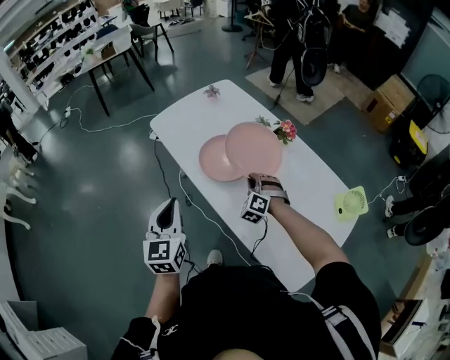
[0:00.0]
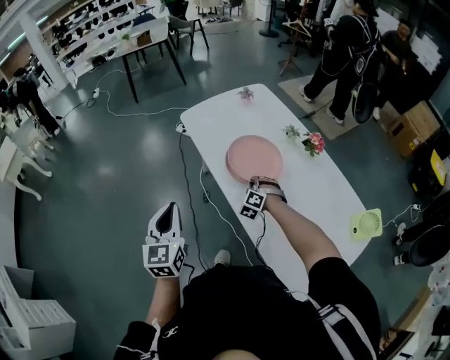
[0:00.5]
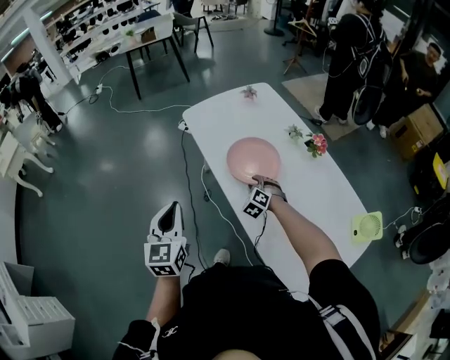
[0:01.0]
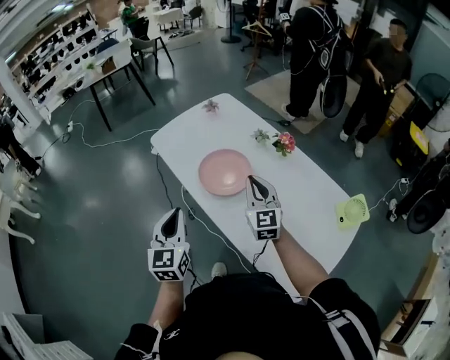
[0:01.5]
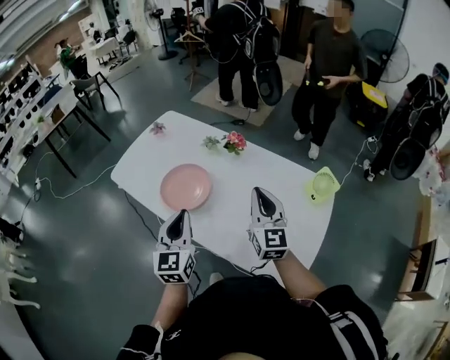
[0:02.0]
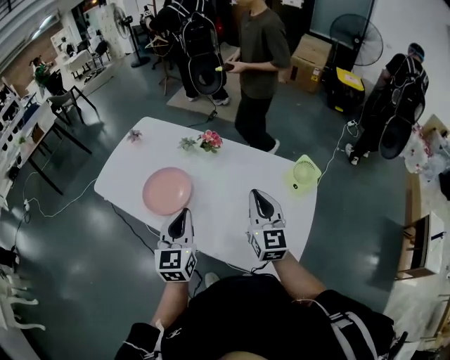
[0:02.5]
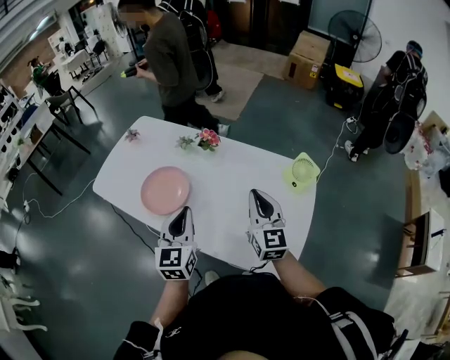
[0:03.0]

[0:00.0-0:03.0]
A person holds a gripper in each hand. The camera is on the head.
0:00.0 to 0:01.5: The left gripper moves roughly 5 cm to the left and comes back; the right gripper shifts some 15 cm upward, twists some 50 degrees clockwise, seen from behind, and opens and closes again.
0:01.5 to 0:03.0: The right gripper moves about 25 cm, and swivels roughly 30 degrees. The left gripper ends up about 25 cm from where it was, and rotates approximately 30 degrees.

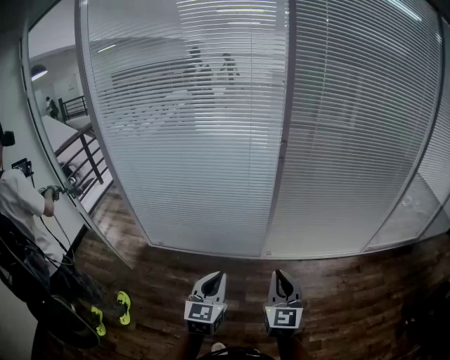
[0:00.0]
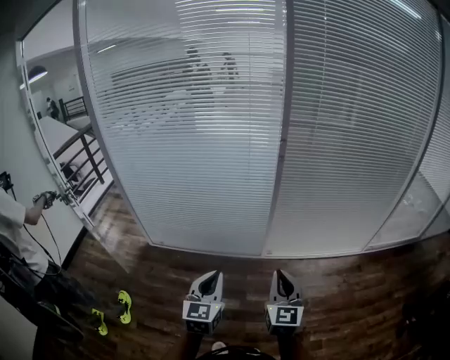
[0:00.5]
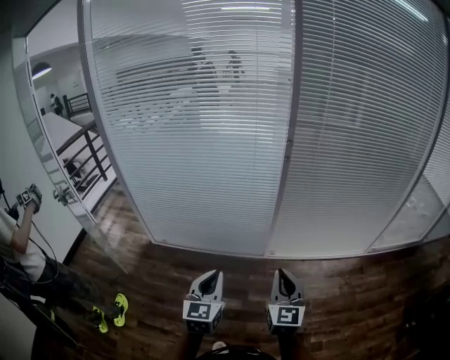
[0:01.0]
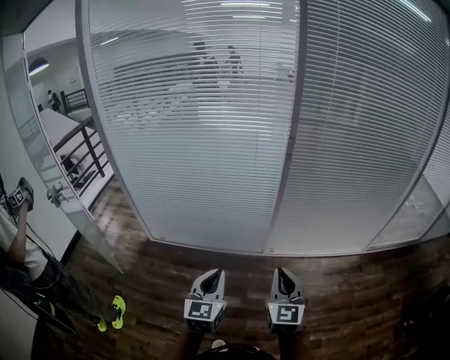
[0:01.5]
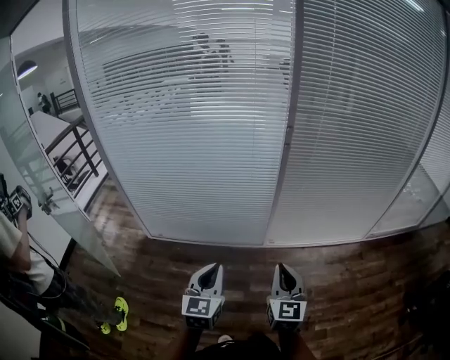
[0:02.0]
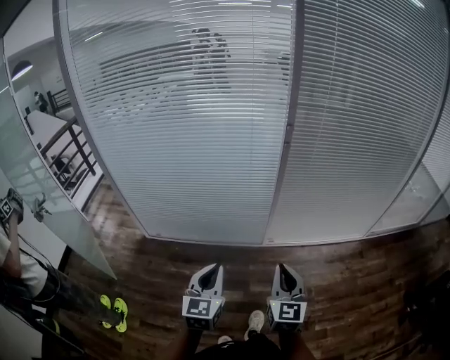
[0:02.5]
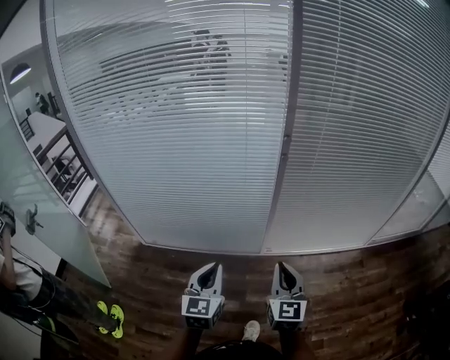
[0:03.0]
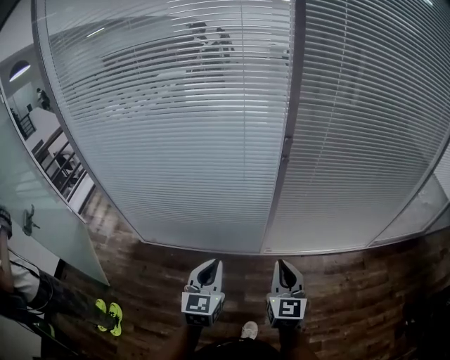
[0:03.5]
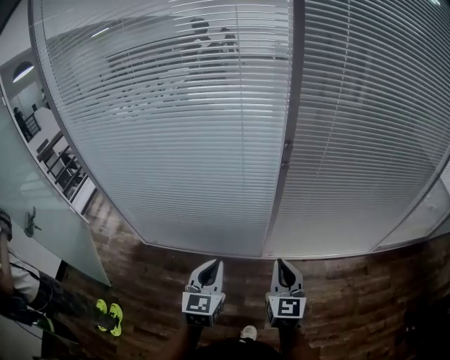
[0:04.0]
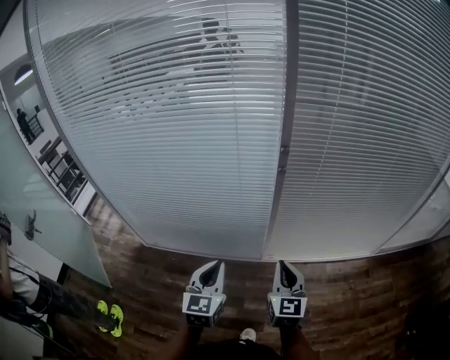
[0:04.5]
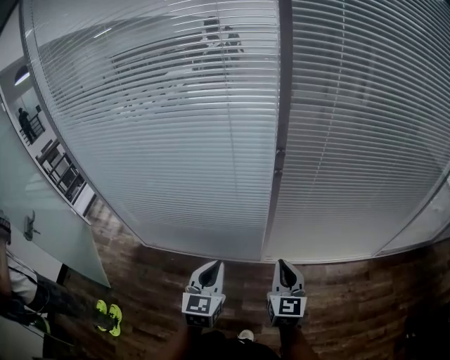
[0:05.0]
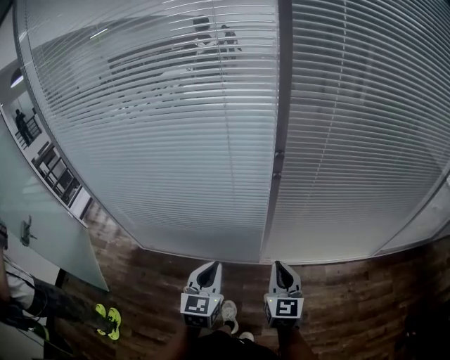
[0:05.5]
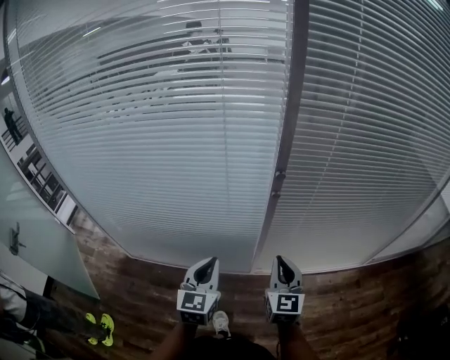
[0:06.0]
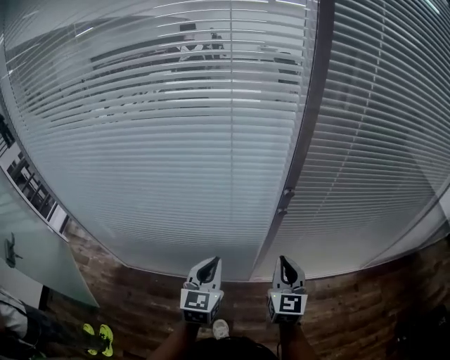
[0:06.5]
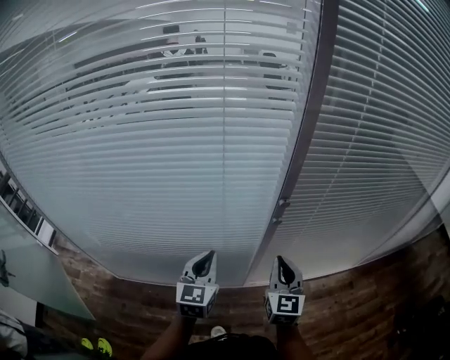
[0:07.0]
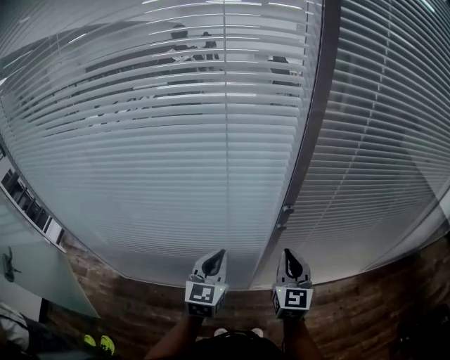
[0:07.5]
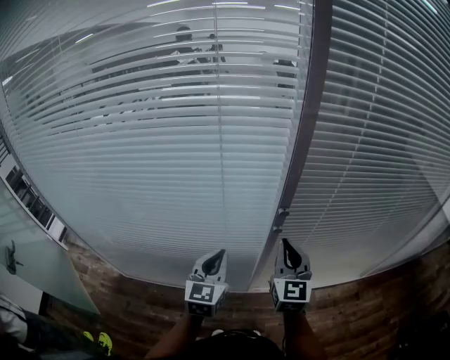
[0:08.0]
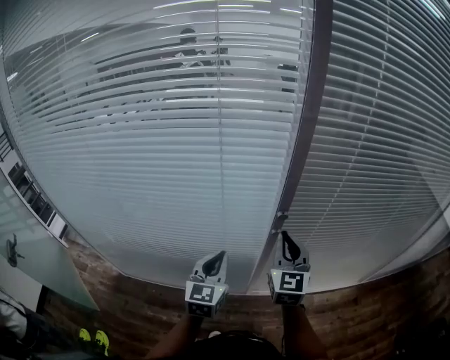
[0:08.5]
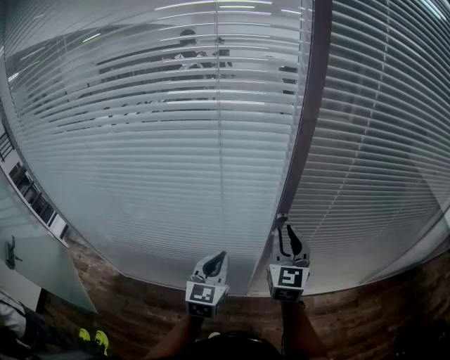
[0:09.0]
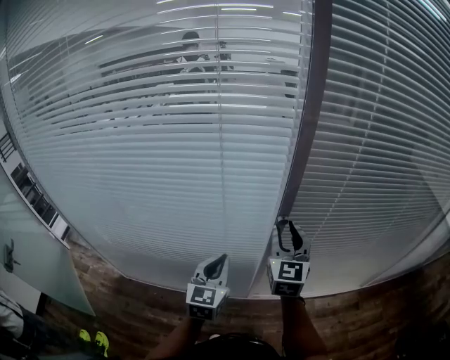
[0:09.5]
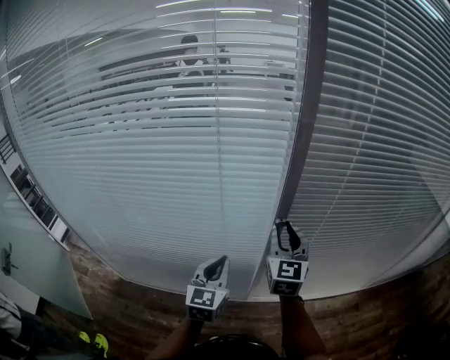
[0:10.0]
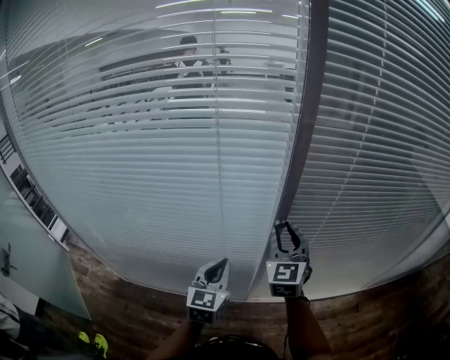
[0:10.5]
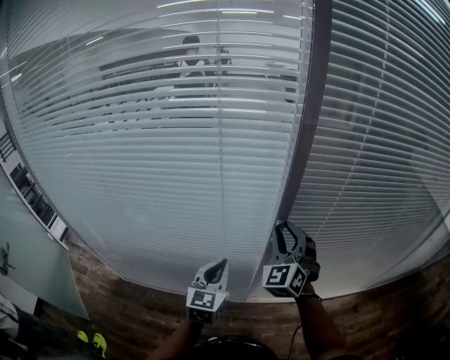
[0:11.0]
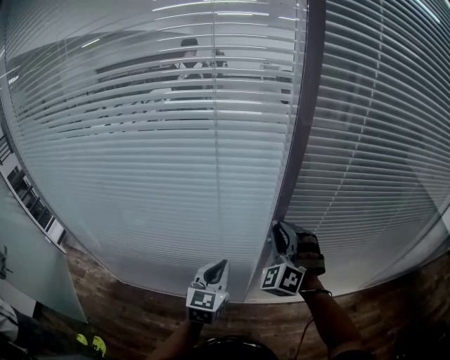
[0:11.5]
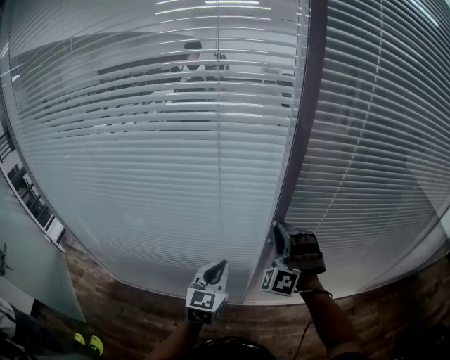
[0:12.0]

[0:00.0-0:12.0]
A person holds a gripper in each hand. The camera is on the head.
0:00.0 to 0:02.0: The left gripper ends up roughly 5 cm from where it was.
0:02.0 to 0:04.0: Both grippers move forward, roughly 20 cm.
0:04.0 to 0:06.0: The two grippers go about 15 cm forward.
0:06.0 to 0:08.0: Both grippers move forward, about 15 cm.
0:08.0 to 0:10.0: The right gripper goes roughly 5 cm forward, and opens up.
0:10.0 to 0:12.0: The right gripper twists about 80 degrees counterclockwise, seen from behind.

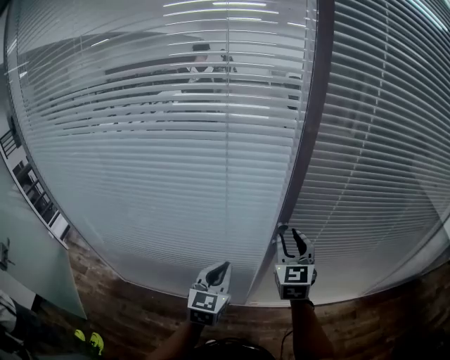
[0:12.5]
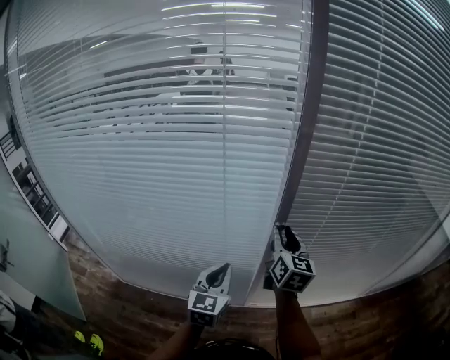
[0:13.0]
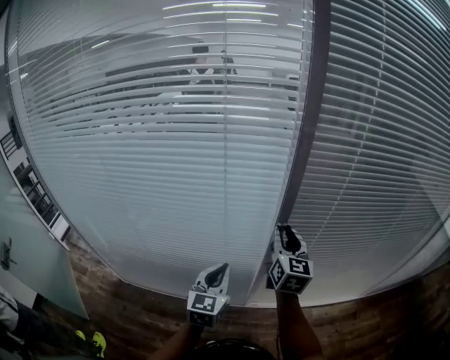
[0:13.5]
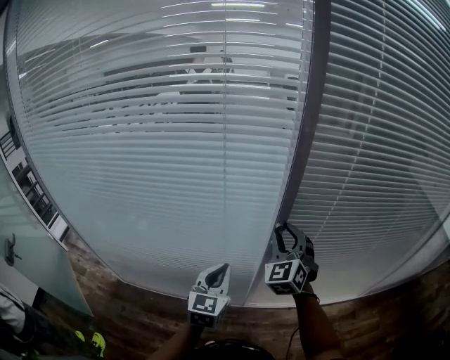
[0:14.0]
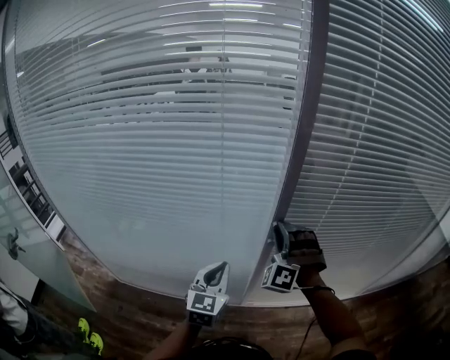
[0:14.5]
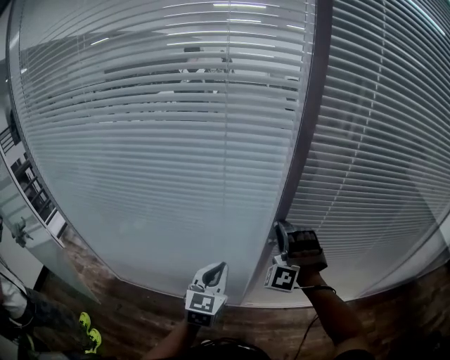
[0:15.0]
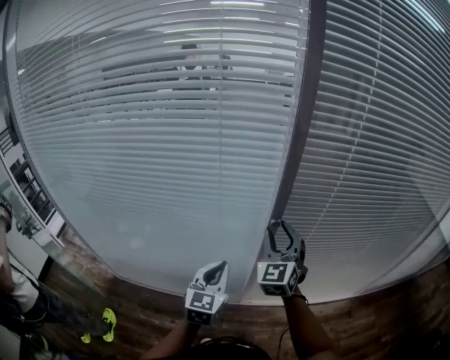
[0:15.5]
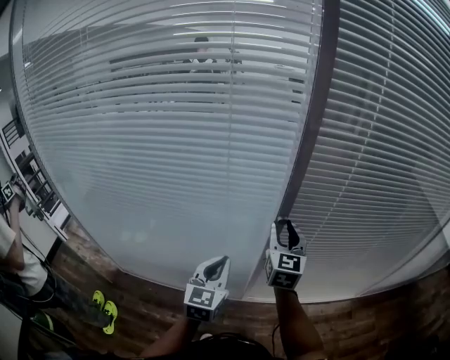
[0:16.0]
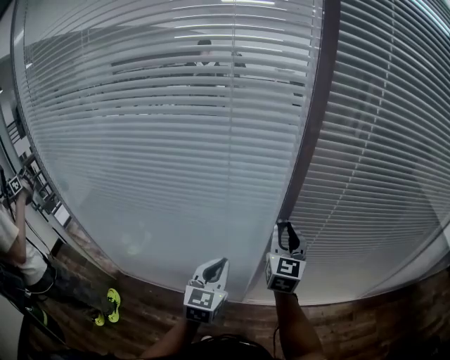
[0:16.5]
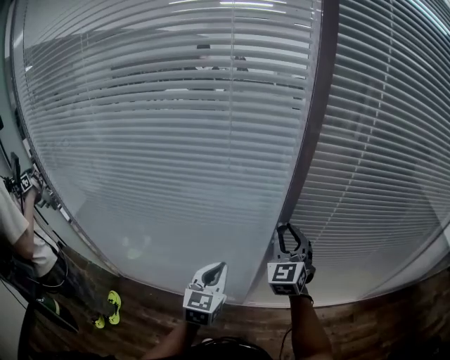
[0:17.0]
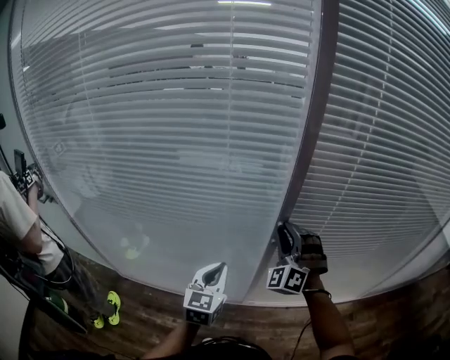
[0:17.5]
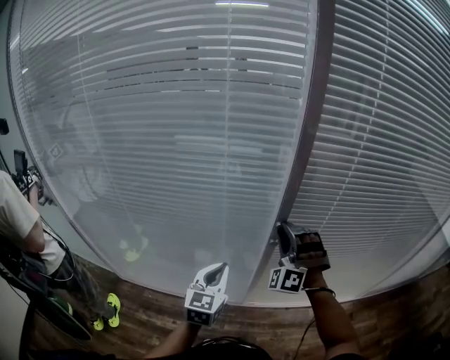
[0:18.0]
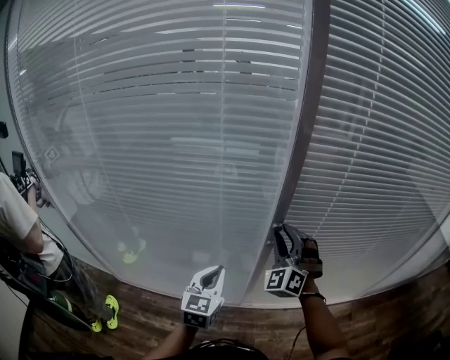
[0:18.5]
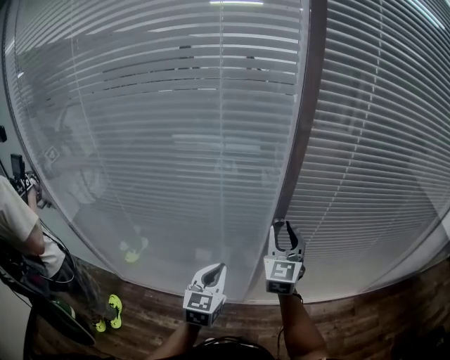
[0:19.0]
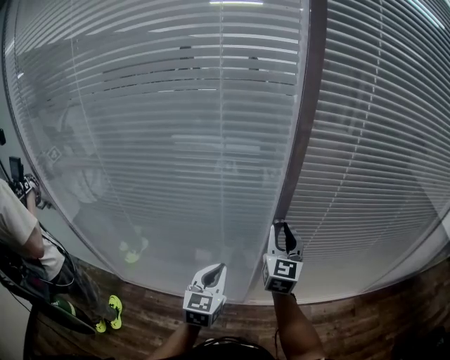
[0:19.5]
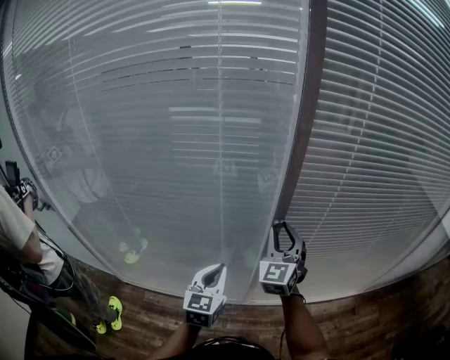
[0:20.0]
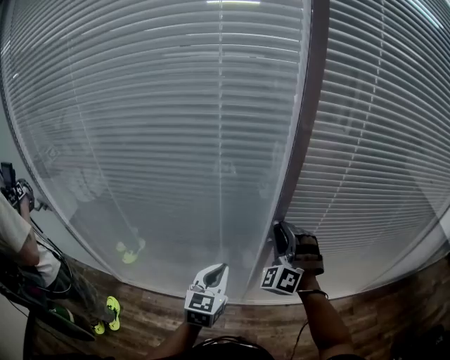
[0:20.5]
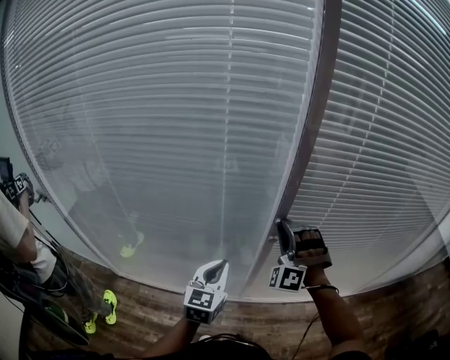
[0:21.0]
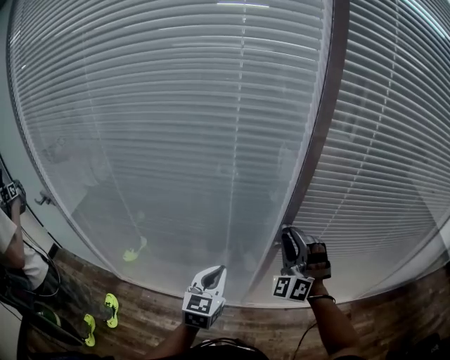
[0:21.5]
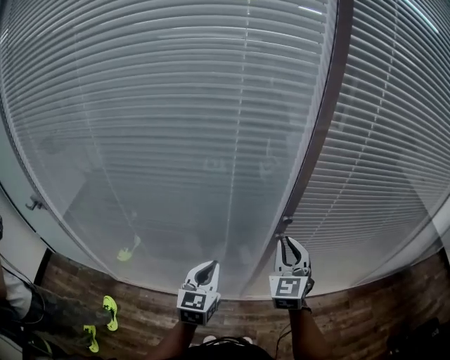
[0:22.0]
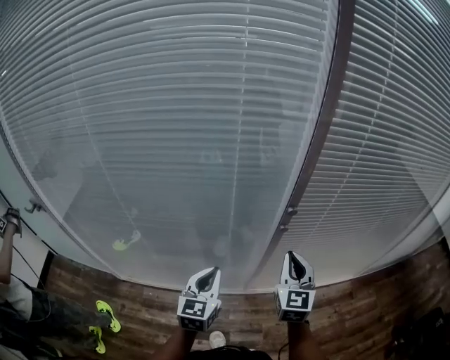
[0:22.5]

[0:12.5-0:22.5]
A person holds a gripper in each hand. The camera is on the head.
0:12.5 to 0:14.5: The right gripper rotates around the line of its fingers by some 70 degrees, counterclockwise from behind.
0:14.5 to 0:16.5: The right gripper rotates around the line of its fingers by about 80 degrees, clockwise from behind.
0:16.5 to 0:18.5: The right gripper twists roughly 60 degrees counterclockwise, seen from behind.
0:20.5 to 0:22.5: The right gripper moves backward, approximately 10 cm, rotates around the line of its fingers by some 60 degrees, clockwise from behind, and closes up, while the left gripper shifts approximately 5 cm to the left.

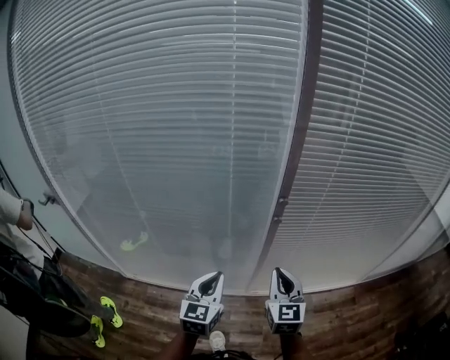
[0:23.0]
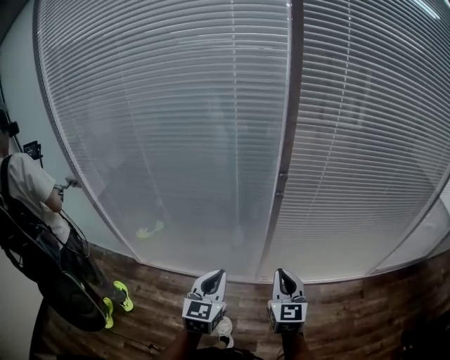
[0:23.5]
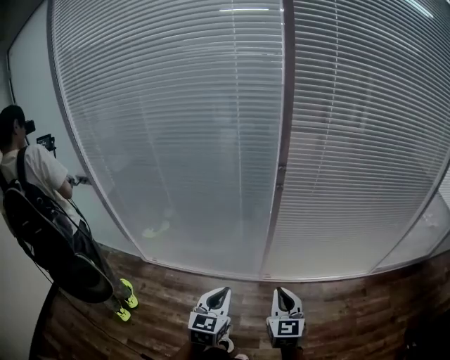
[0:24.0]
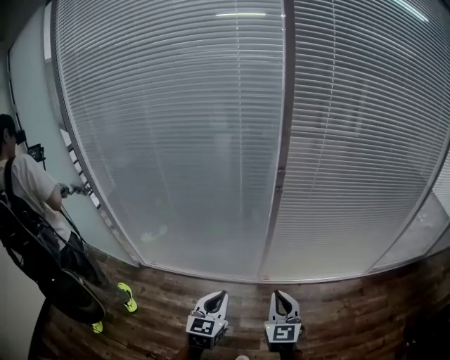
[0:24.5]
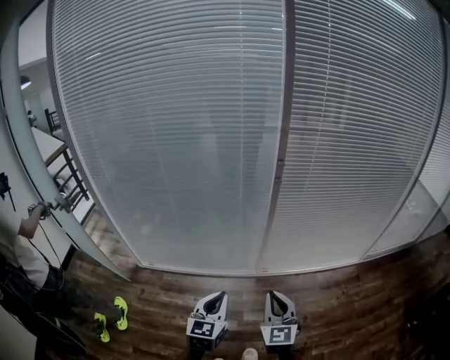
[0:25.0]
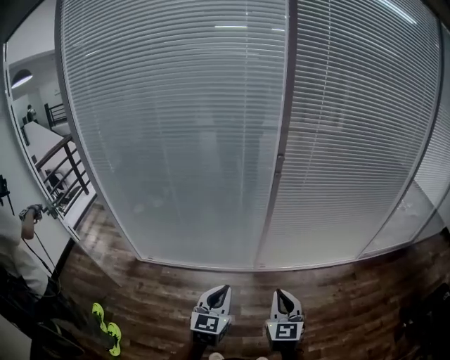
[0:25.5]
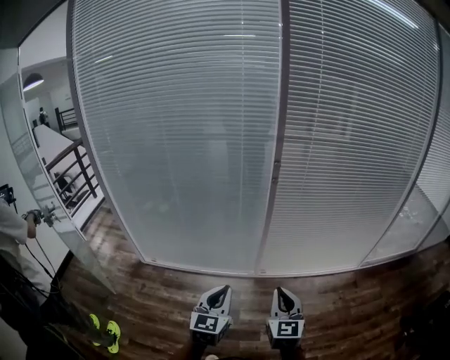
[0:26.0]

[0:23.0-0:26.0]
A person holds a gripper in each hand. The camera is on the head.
0:23.0 to 0:24.5: The two grippers go some 25 cm backward.
0:24.5 to 0:26.0: Both grippers travel together backward, roughly 10 cm.
